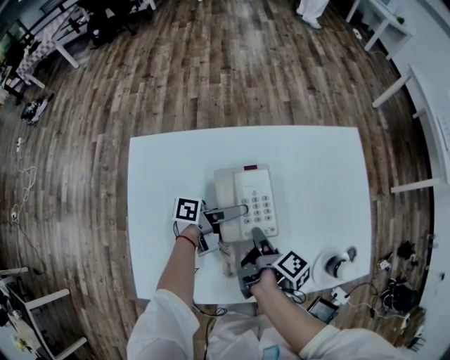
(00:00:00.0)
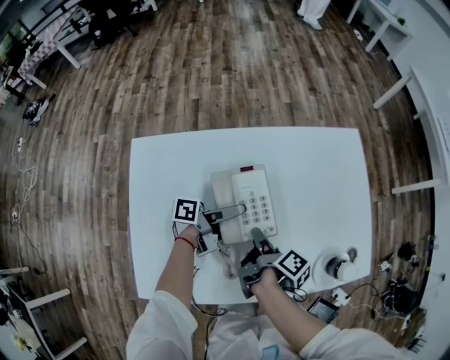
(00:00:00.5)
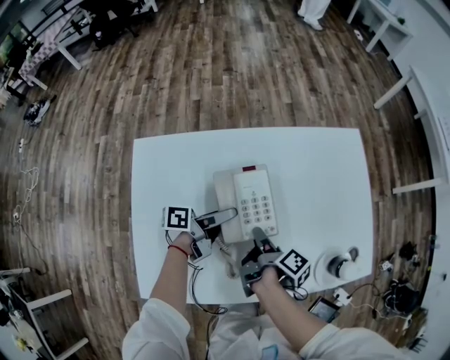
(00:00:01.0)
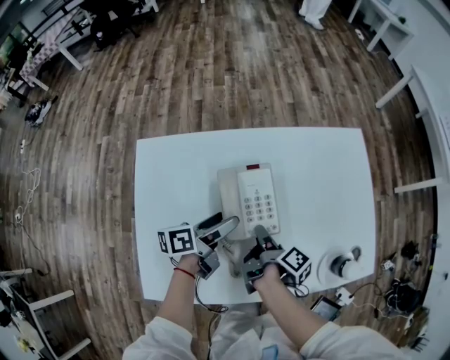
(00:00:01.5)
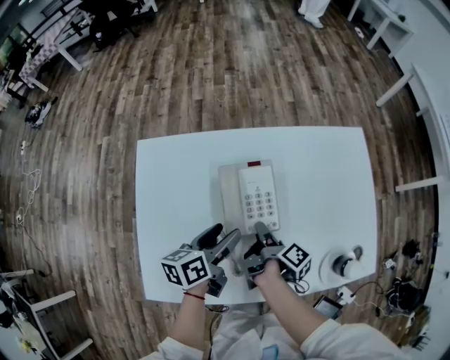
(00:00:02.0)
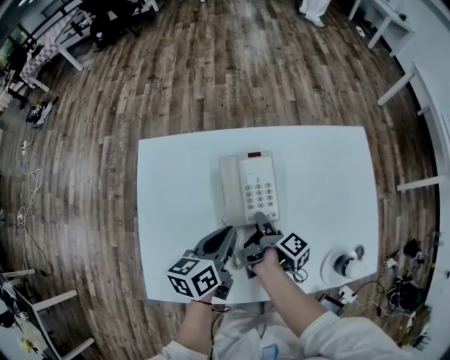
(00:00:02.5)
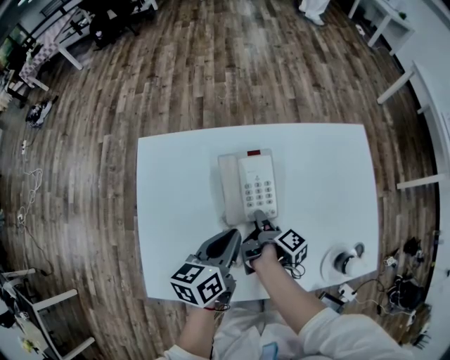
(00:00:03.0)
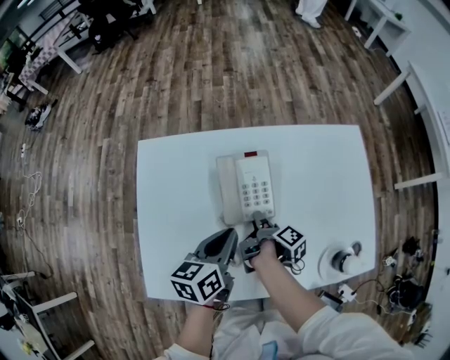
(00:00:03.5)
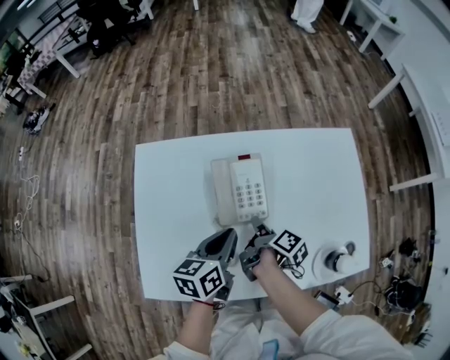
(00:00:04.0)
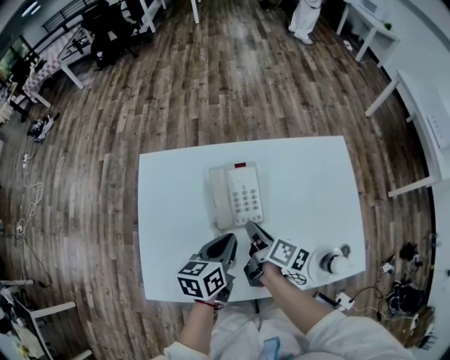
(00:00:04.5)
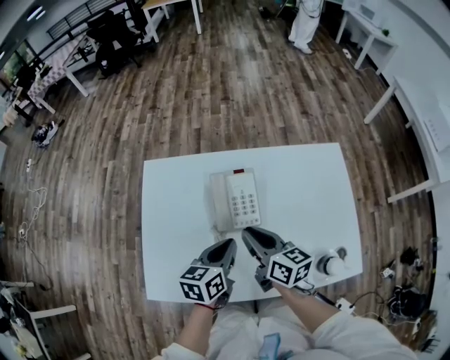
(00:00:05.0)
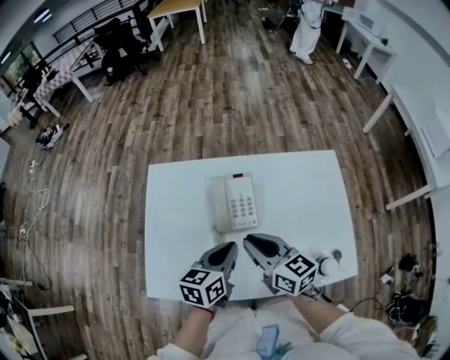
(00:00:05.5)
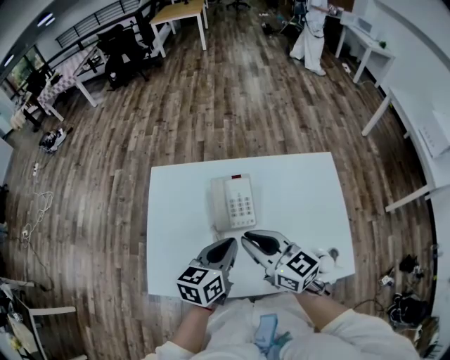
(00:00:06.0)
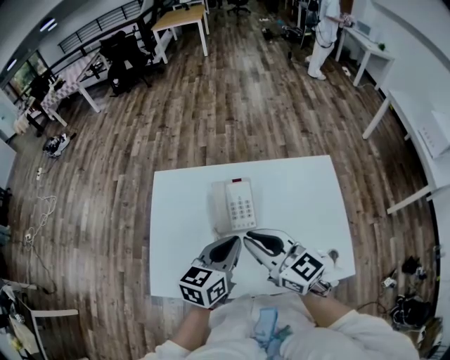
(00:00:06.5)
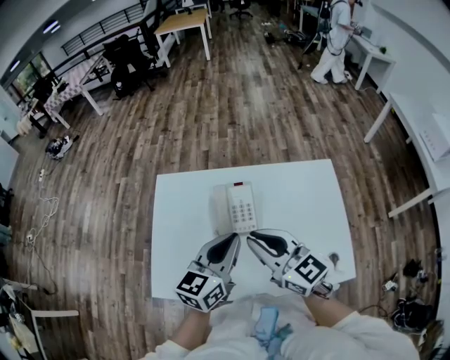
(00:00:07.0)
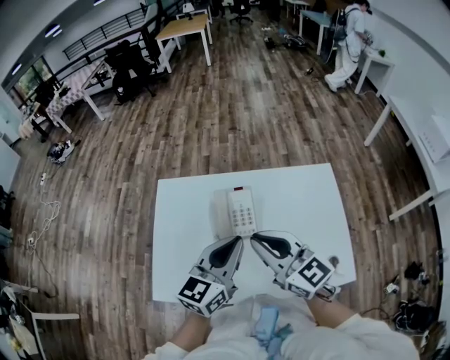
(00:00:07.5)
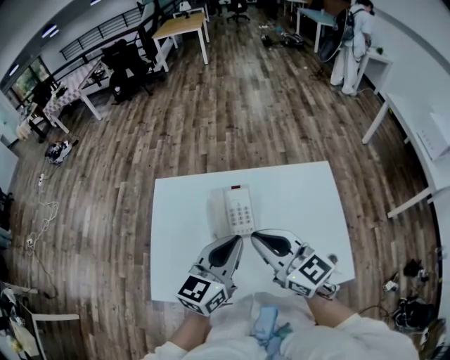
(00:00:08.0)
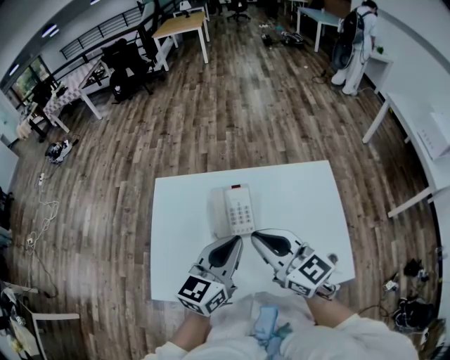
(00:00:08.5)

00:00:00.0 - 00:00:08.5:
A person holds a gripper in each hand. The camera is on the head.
00:00:00.0 - 00:00:02.0: The left gripper shifts about 10 cm backward, turns by roughly 50 degrees, and closes its fingers.
00:00:02.0 - 00:00:04.0: The left gripper moves roughly 5 cm, and closes up.
00:00:04.0 - 00:00:06.5: The left gripper travels upward by roughly 15 cm, and changes its angle by roughly 20 degrees. Meanwhile the right gripper goes some 30 cm upward, and twists approximately 90 degrees counterclockwise, seen from behind.
00:00:06.5 - 00:00:08.5: The left gripper travels upward by some 5 cm.

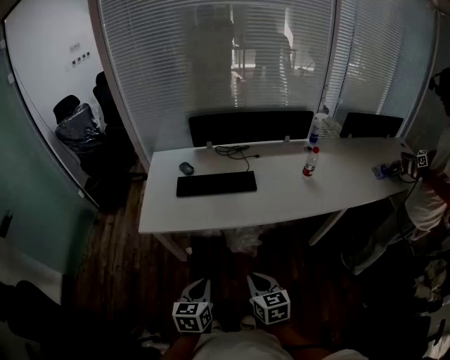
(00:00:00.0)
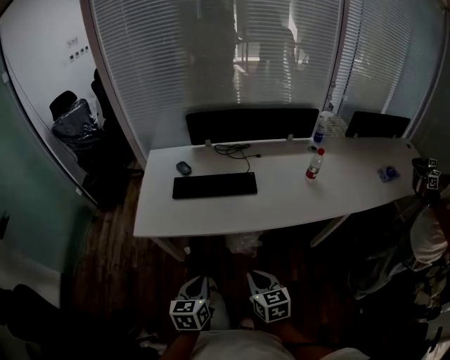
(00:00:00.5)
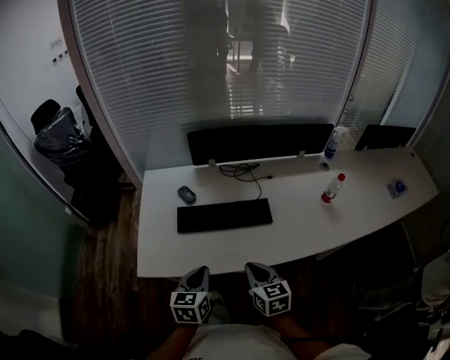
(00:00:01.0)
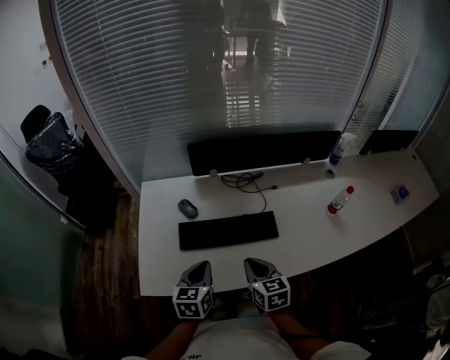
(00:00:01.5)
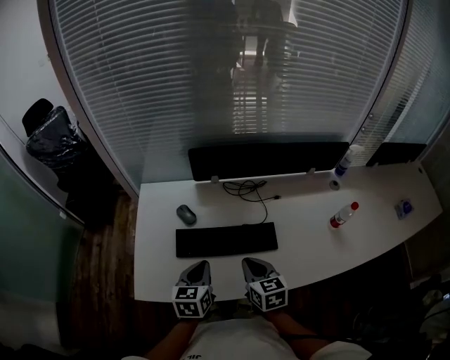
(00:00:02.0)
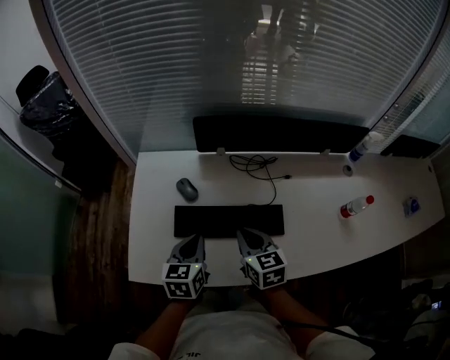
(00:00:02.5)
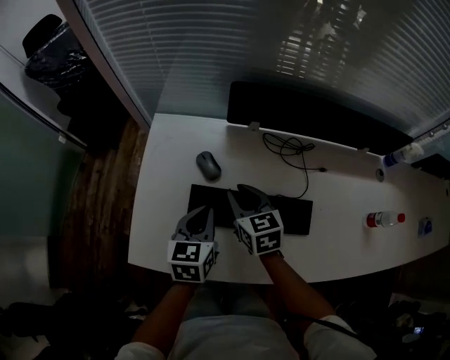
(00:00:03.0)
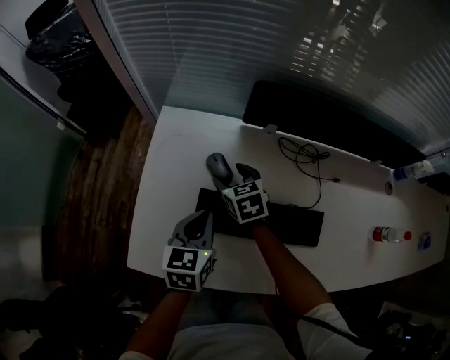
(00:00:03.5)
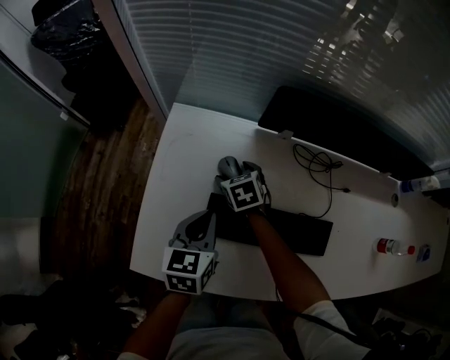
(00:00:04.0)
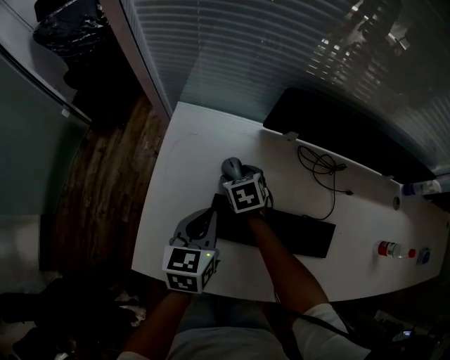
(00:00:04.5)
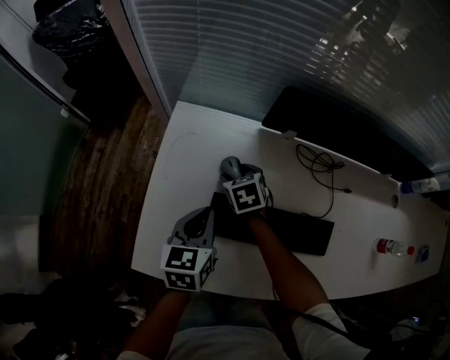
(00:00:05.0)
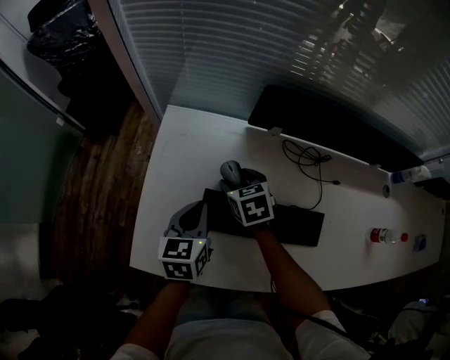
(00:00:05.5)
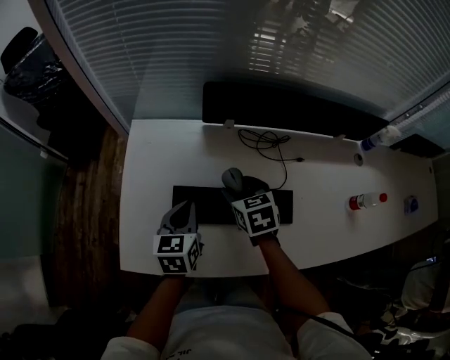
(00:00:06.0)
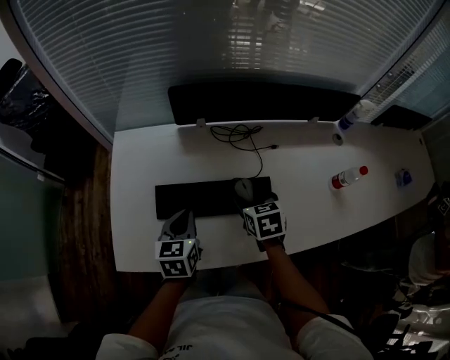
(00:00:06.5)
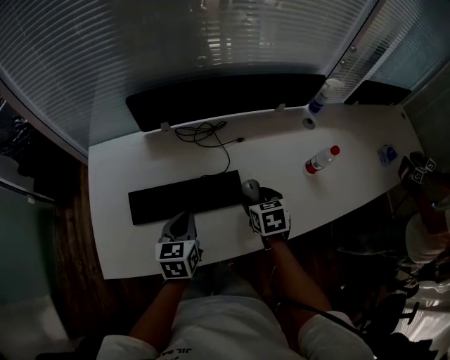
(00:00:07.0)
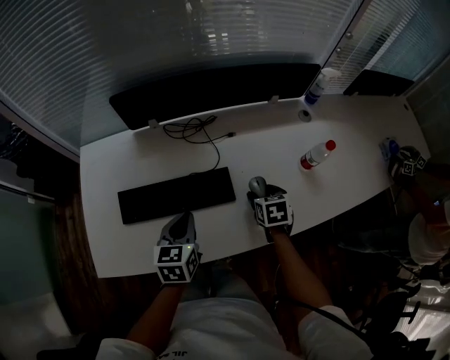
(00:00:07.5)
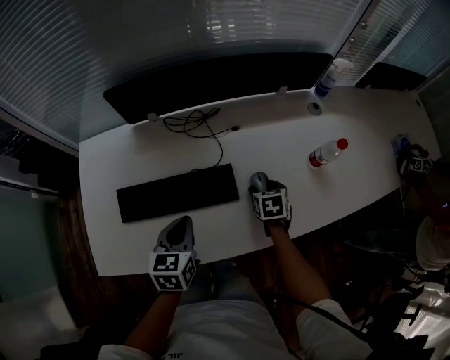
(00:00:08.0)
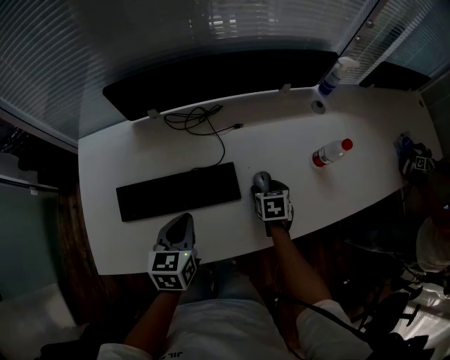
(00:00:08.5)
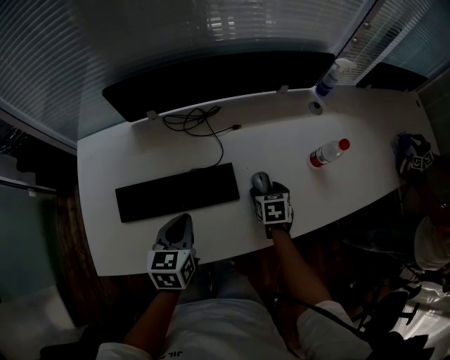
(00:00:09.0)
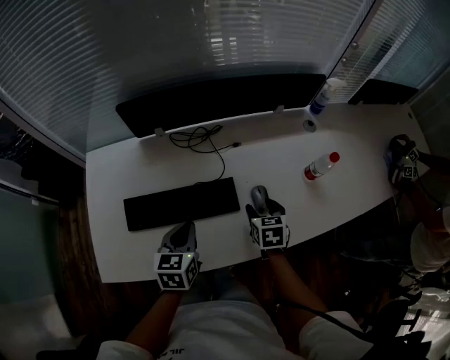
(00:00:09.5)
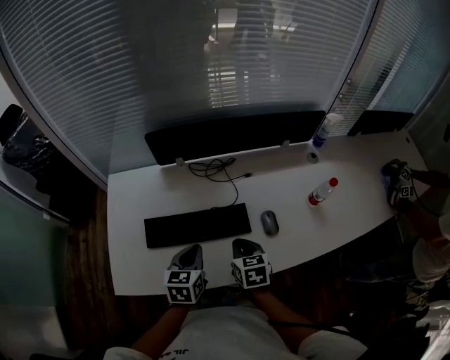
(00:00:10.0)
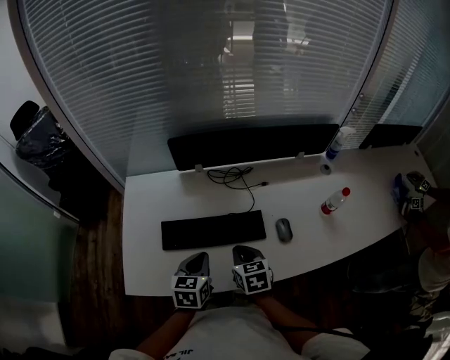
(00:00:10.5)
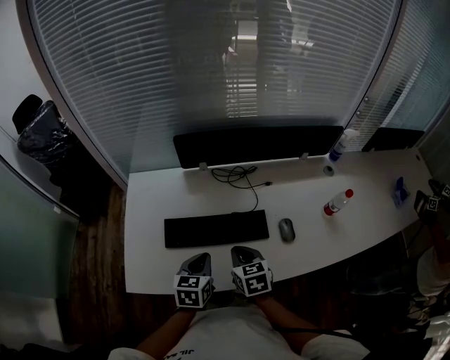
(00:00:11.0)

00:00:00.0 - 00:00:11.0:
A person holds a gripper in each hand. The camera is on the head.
00:00:00.0 - 00:00:02.0: Both grippers are carried forward, about 40 cm.
00:00:02.0 - 00:00:03.5: The left gripper travels forward, to the left and downward by approximately 15 cm. The right gripper moves forward, to the left and downward, about 35 cm, rotates roughly 30 degrees, and opens up.
00:00:05.5 - 00:00:07.5: The right gripper shifts by about 50 cm, and rotates approximately 40 degrees, while the left gripper moves approximately 30 cm.
00:00:07.5 - 00:00:09.0: The right gripper moves downward, roughly 5 cm.
00:00:09.0 - 00:00:11.0: The right gripper shifts some 30 cm to the left, upward and backward, changes its angle by some 20 degrees, and closes its fingers. Meanwhile the left gripper travels to the left and backward by approximately 10 cm.

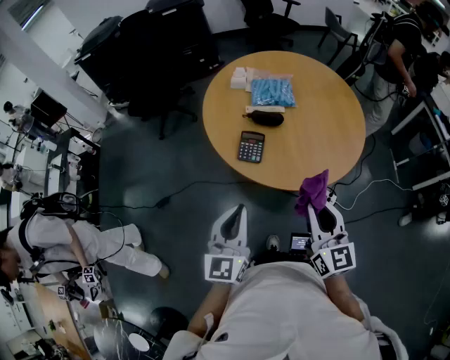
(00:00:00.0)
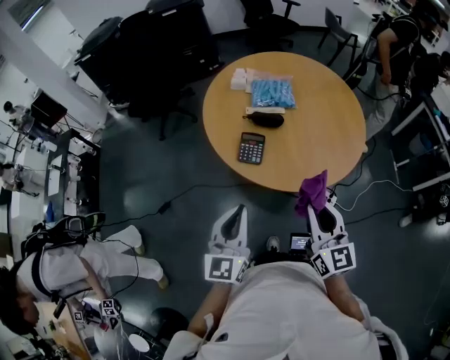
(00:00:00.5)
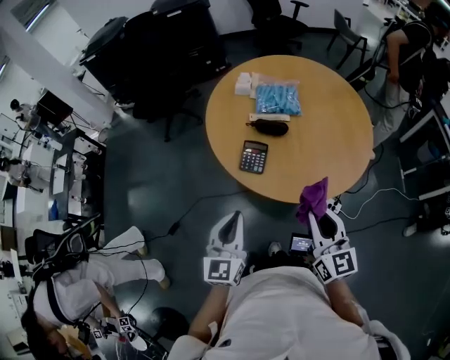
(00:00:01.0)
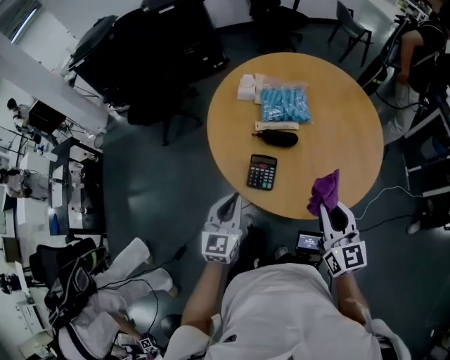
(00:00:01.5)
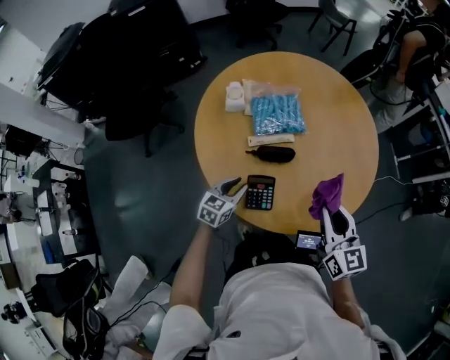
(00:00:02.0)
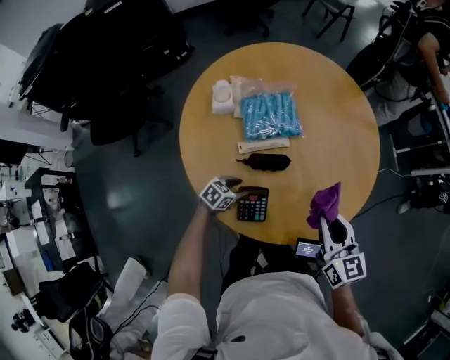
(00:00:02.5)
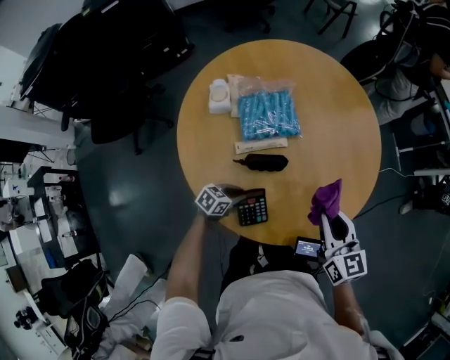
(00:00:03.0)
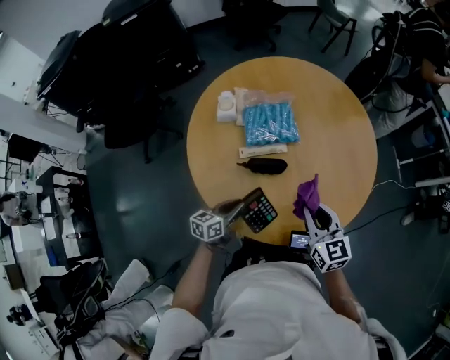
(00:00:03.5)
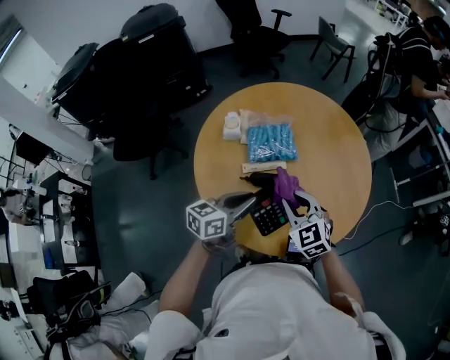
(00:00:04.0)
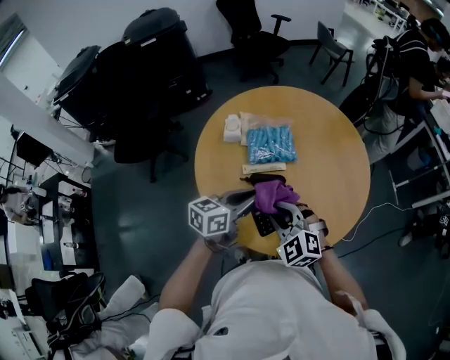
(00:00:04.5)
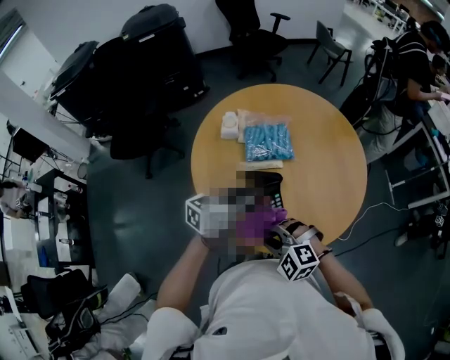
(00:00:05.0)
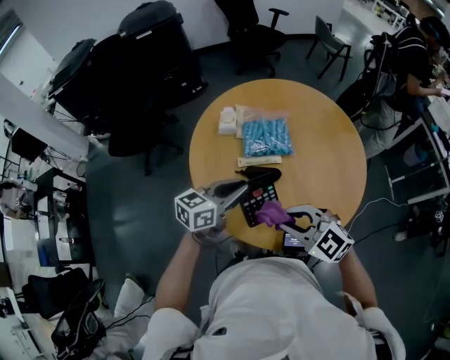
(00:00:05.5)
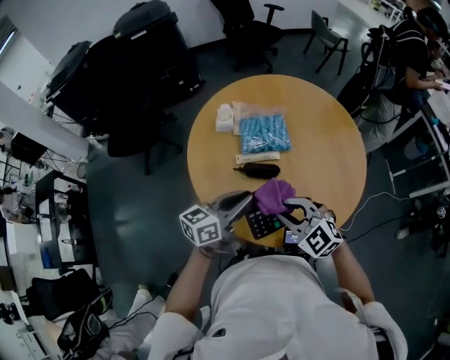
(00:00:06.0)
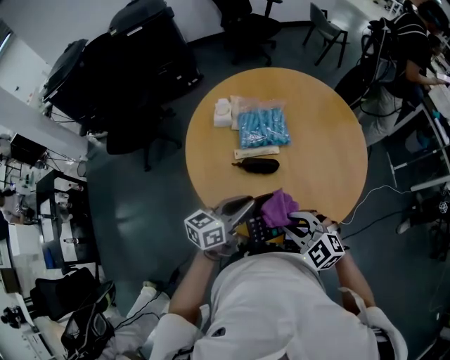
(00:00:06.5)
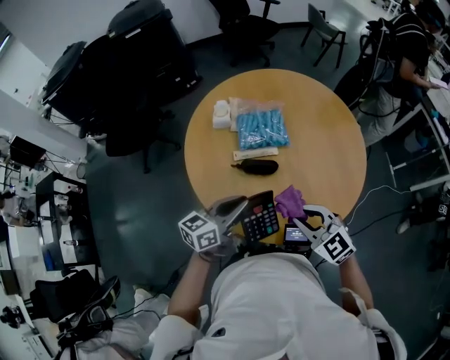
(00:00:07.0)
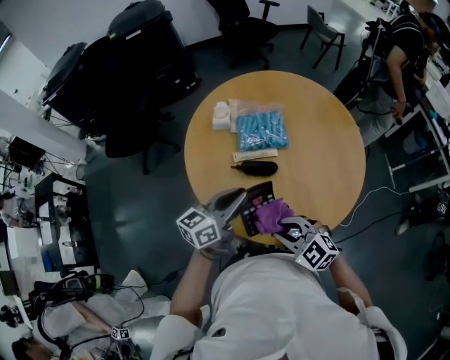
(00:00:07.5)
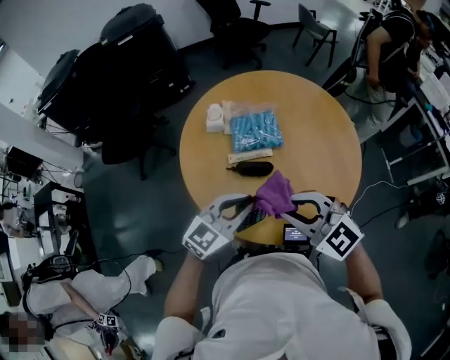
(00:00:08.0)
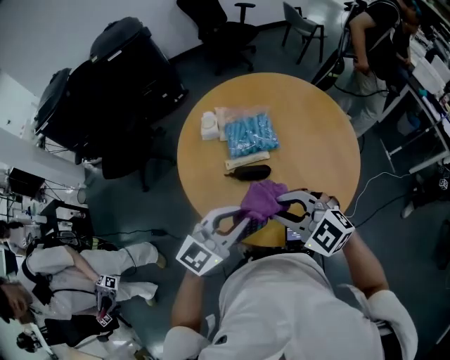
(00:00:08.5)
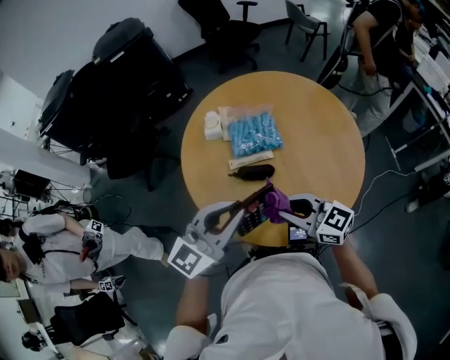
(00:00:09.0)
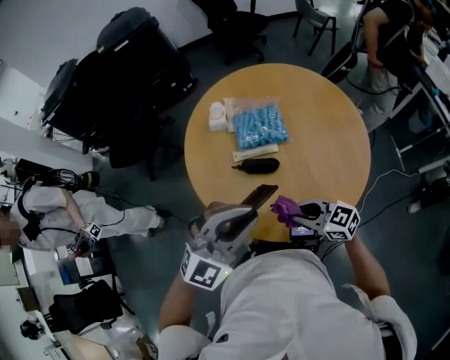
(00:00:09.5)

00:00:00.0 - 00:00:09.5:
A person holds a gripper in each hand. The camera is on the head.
00:00:00.0 - 00:00:02.0: The left gripper changes place by approximately 40 cm, and turns by some 40 degrees, while the right gripper moves about 25 cm.
00:00:02.0 - 00:00:04.0: The right gripper travels to the left and forward by some 10 cm, and turns by some 40 degrees, while the left gripper is displaced upward by approximately 15 cm, changes its angle by roughly 20 degrees, and opens, then closes once more.
00:00:04.0 - 00:00:05.5: The right gripper shifts about 10 cm backward, and changes its angle by some 30 degrees.
00:00:05.5 - 00:00:07.5: The right gripper is displaced downward by roughly 10 cm.
00:00:07.5 - 00:00:09.5: The right gripper goes roughly 5 cm to the right, goes upward and returns, roughly 15 cm each way, and rotates about 30 degrees; the left gripper travels upward and backward by roughly 15 cm, and rotates around the line of its fingers by some 70 degrees, clockwise from behind.
